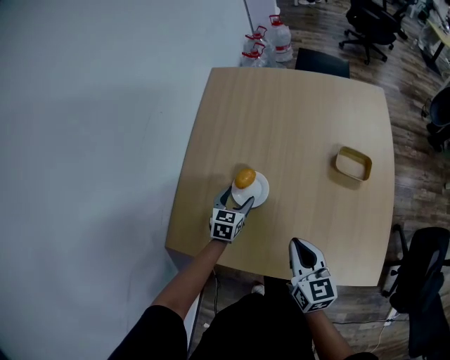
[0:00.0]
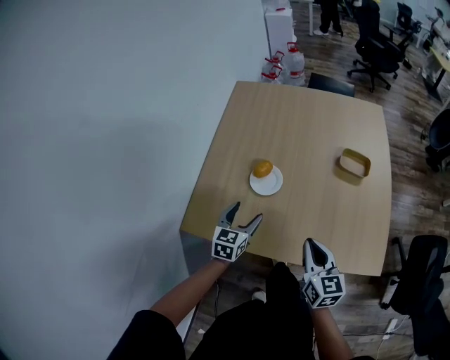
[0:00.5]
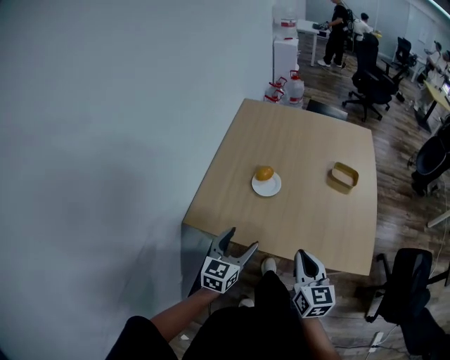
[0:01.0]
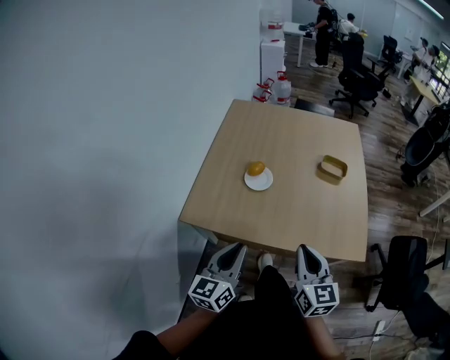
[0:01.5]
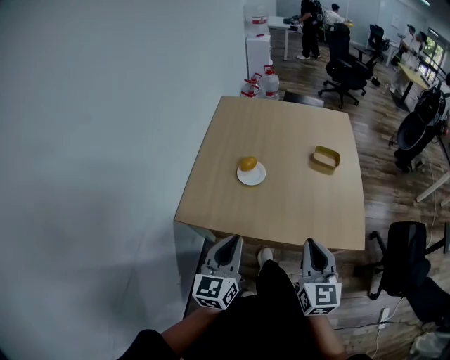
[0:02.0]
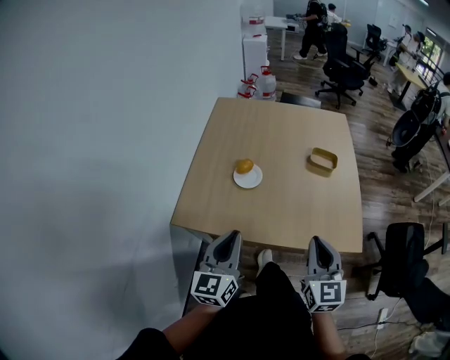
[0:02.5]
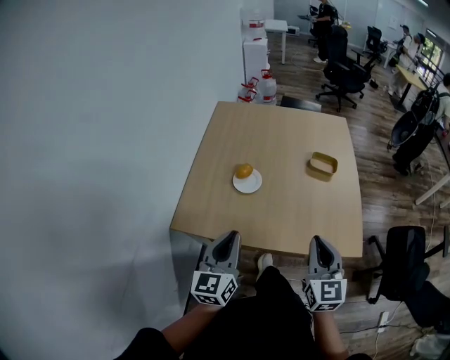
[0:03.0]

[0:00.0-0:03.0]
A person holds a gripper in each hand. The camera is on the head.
0:00.0 to 0:01.5: The right gripper travels backward and upward by some 25 cm; the left gripper goes some 50 cm backward and upward, tilts its fingers roughly 30 degrees upward, and closes up.
0:01.5 to 0:03.0: The left gripper travels forward by approximately 5 cm, while the right gripper is displaced to the right by roughly 5 cm.

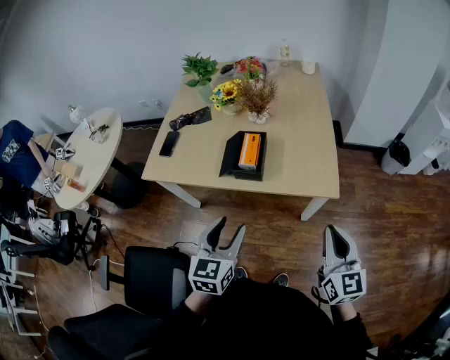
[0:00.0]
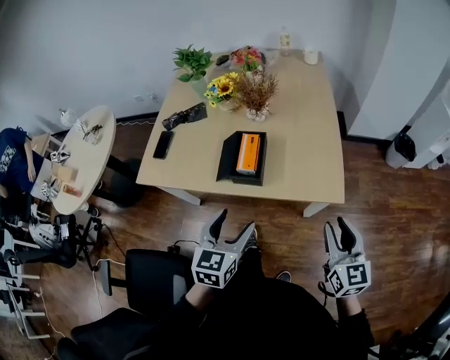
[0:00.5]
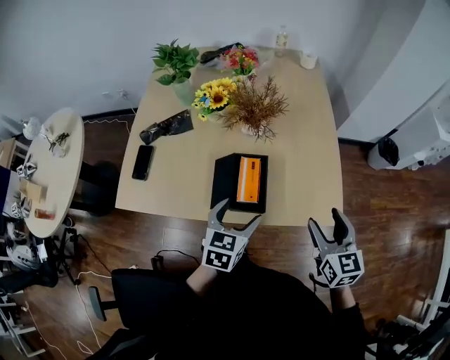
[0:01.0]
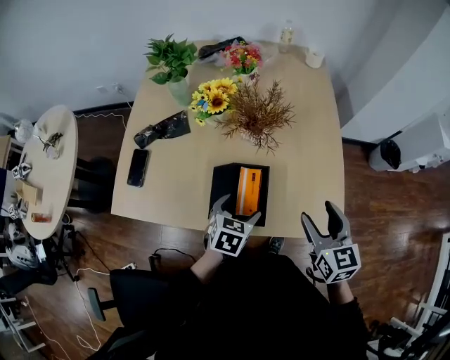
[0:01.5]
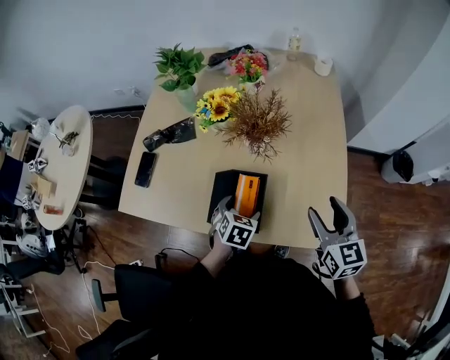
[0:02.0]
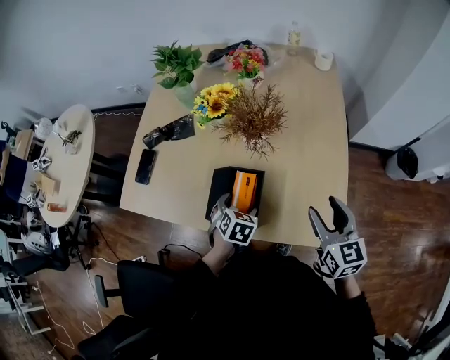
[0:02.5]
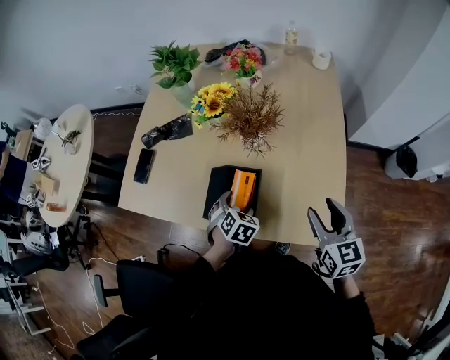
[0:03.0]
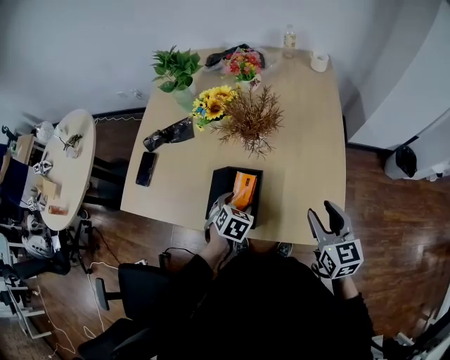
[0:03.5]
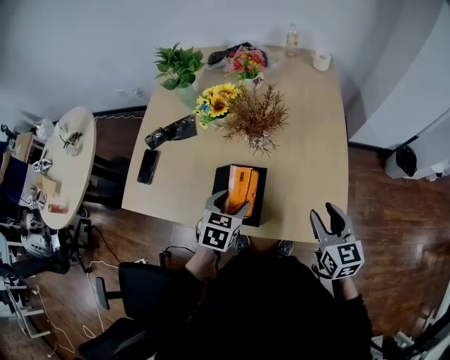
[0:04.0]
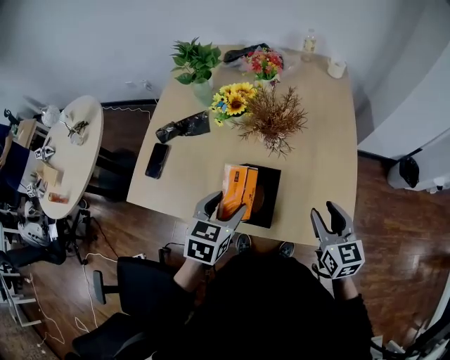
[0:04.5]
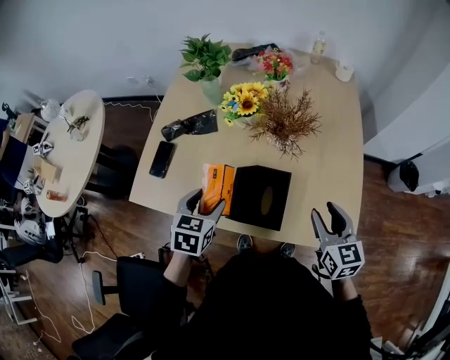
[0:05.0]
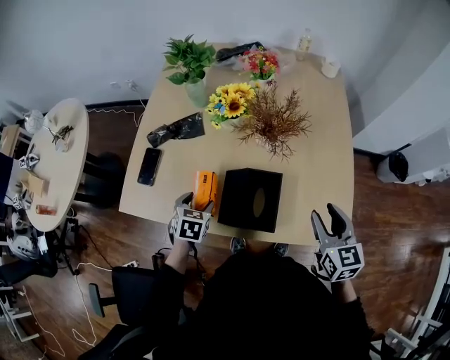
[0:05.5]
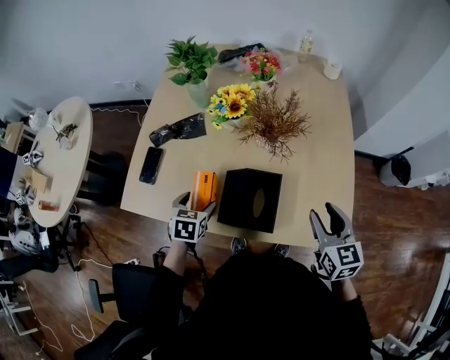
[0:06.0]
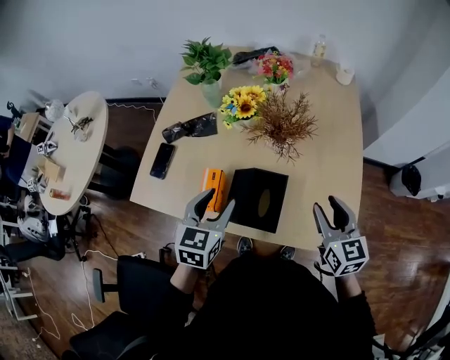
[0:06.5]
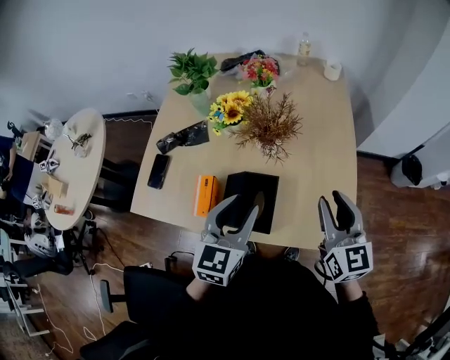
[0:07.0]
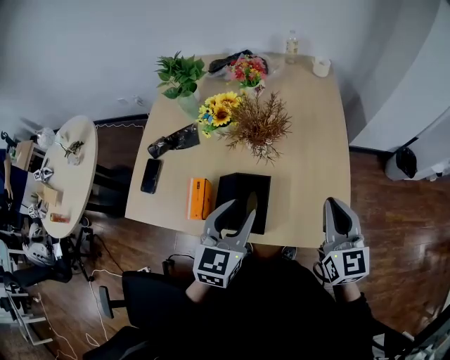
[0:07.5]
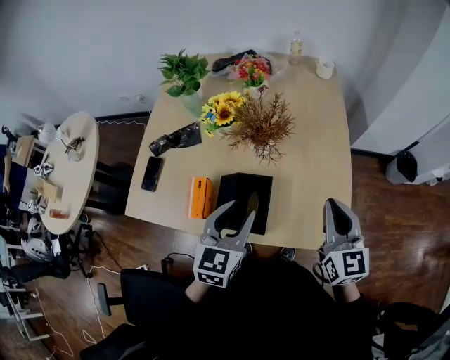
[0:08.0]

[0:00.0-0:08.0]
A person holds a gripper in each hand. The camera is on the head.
0:00.0 to 0:02.0: The left gripper heads forward and downward, covering some 40 cm, tips its fingers downward by about 30 degrees, and opens its fingers; the right gripper heads forward, covering about 35 cm, and opens up.
0:02.0 to 0:04.0: The right gripper shifts by some 5 cm. Meanwhile the left gripper is displaced upward by about 5 cm.
0:04.0 to 0:06.0: The left gripper travels to the left by some 20 cm; the right gripper is displaced to the left by roughly 5 cm.
0:06.0 to 0:08.0: The left gripper is displaced to the right and upward by about 25 cm, points its fingers approximately 30 degrees further upward, and closes its fingers; the right gripper travels upward by some 5 cm, and closes up.

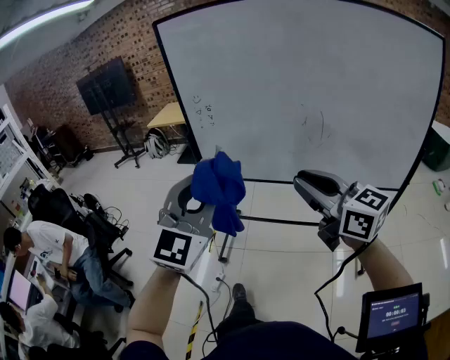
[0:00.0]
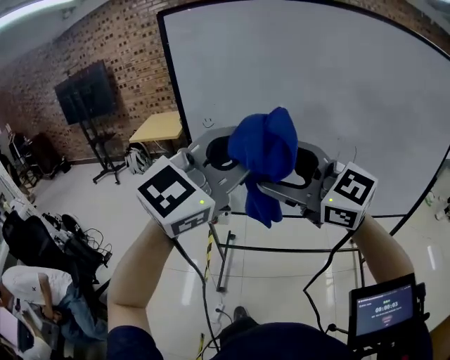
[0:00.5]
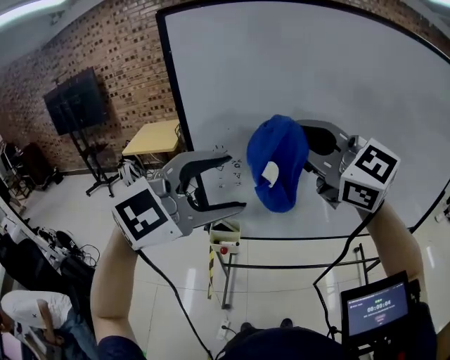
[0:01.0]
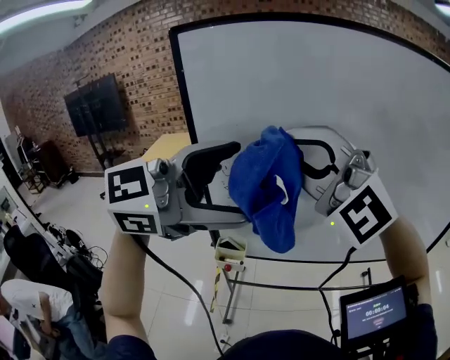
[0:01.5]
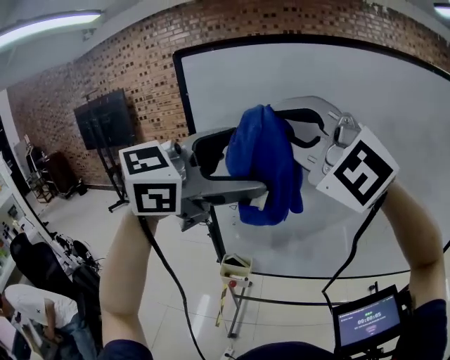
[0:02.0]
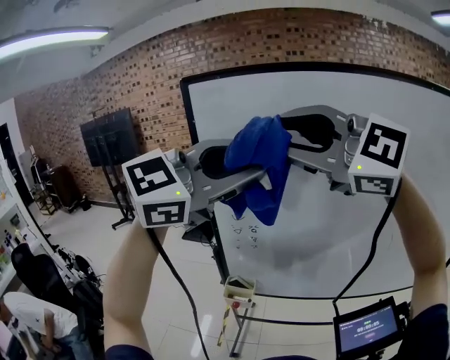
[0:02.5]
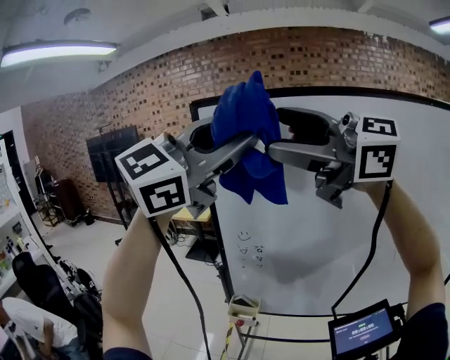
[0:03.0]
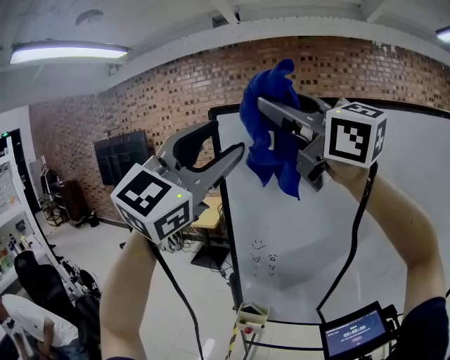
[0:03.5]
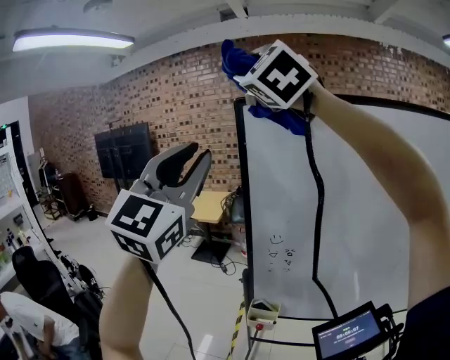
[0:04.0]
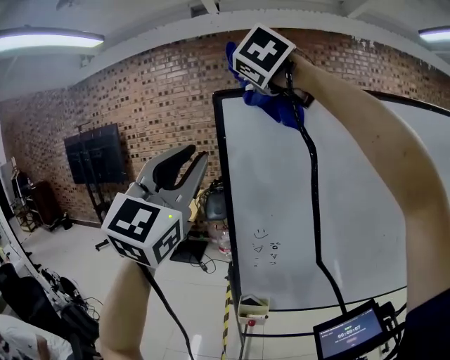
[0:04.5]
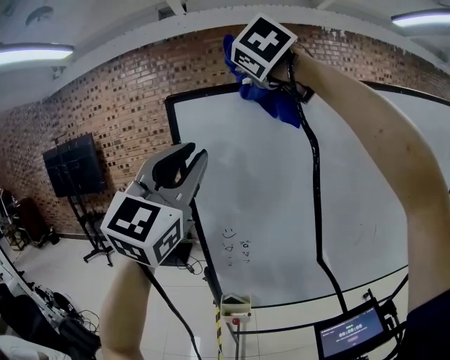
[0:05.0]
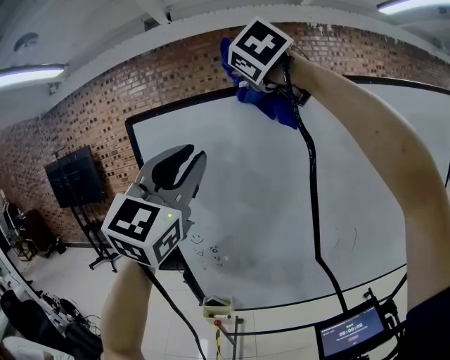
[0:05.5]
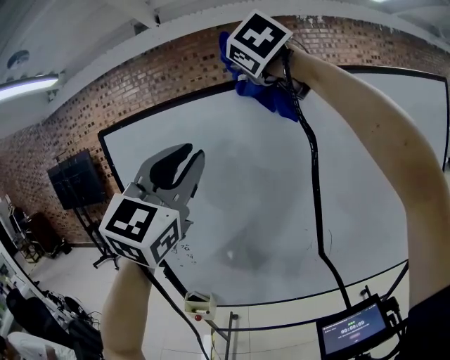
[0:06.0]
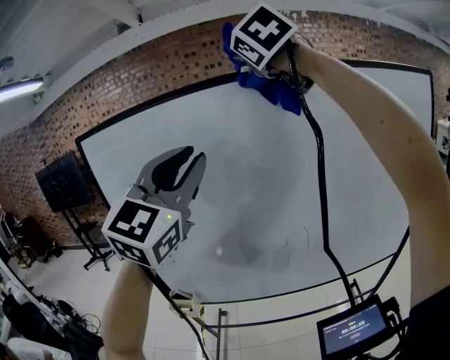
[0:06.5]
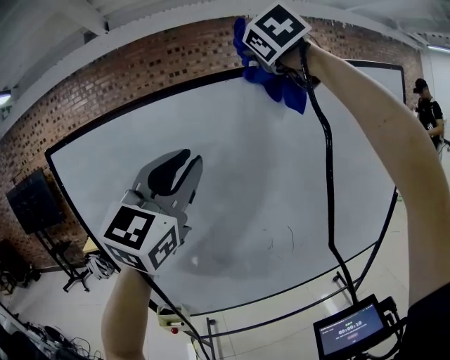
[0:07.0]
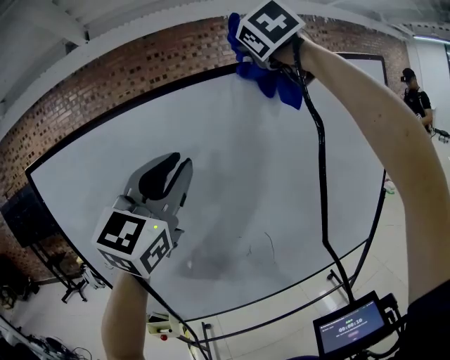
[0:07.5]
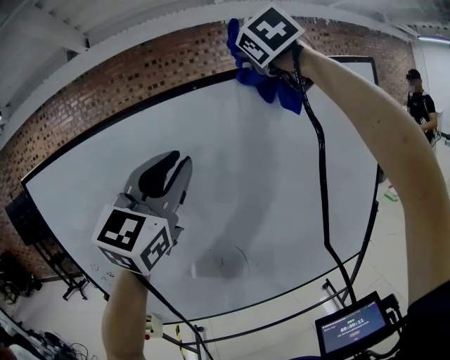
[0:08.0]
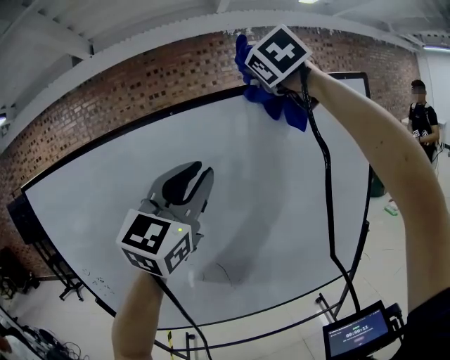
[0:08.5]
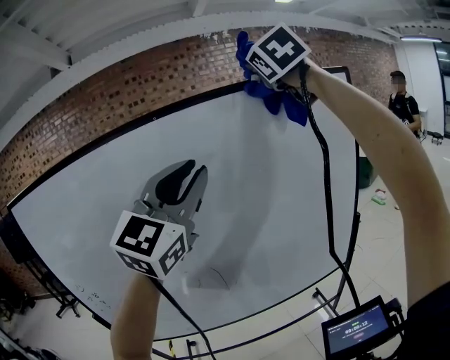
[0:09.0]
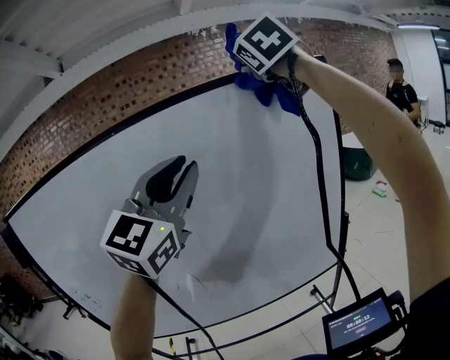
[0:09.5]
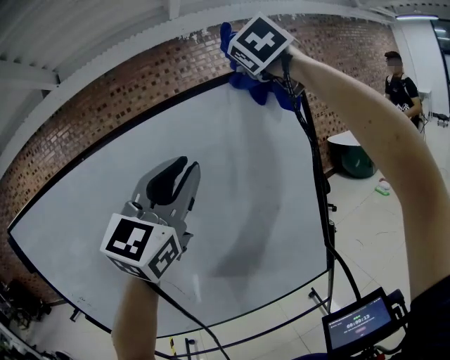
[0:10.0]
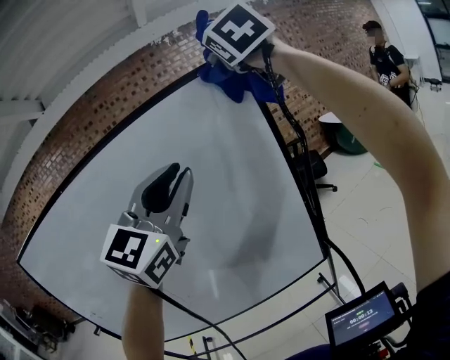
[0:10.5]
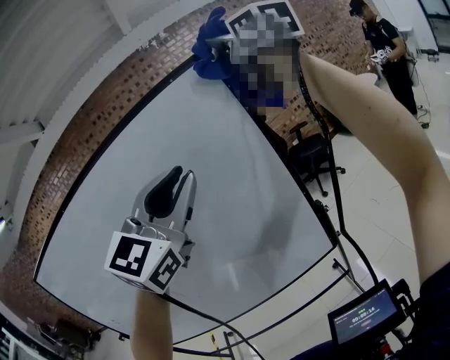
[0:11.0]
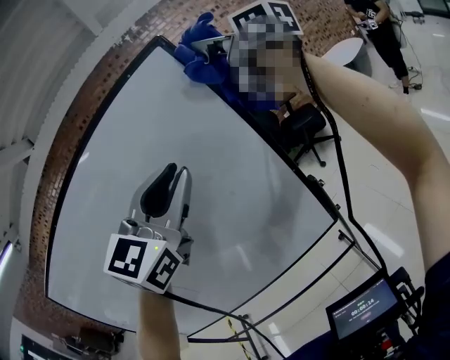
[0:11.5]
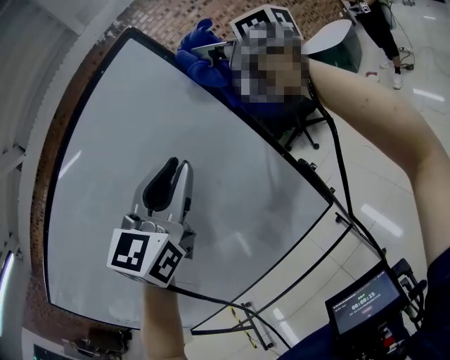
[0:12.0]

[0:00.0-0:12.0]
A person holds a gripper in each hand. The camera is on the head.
0:00.0 to 0:02.0: The left gripper goes up and down, approximately 15 cm each way, reversing 2 times, turns by roughly 50 degrees, and opens its fingers. Meanwhile the right gripper ends up roughly 40 cm from where it was, twists about 70 degrees counterclockwise, seen from behind, and opens, then closes again.
0:02.0 to 0:04.0: The right gripper goes about 20 cm upward, swivels some 30 degrees, and opens and closes again. Meanwhile the left gripper changes place by roughly 20 cm, rotates approximately 50 degrees, and closes up.
0:04.0 to 0:06.0: The grippers both shift to the right by approximately 35 cm. The right gripper changes its angle by approximately 30 degrees.
0:06.0 to 0:08.0: The left gripper is displaced to the right and forward by roughly 25 cm; the right gripper travels to the right by some 30 cm.
0:08.0 to 0:10.0: Both grippers move to the right and forward, approximately 25 cm.
0:10.0 to 0:12.0: The right gripper travels downward and to the right by some 20 cm, and rotates around the line of its fingers by about 60 degrees, clockwise from behind; the left gripper travels to the right, downward and forward by roughly 20 cm.

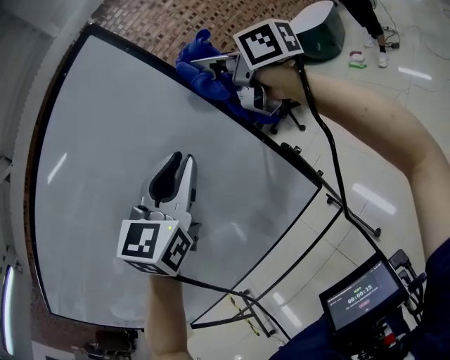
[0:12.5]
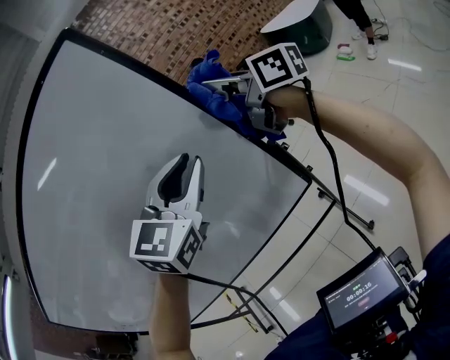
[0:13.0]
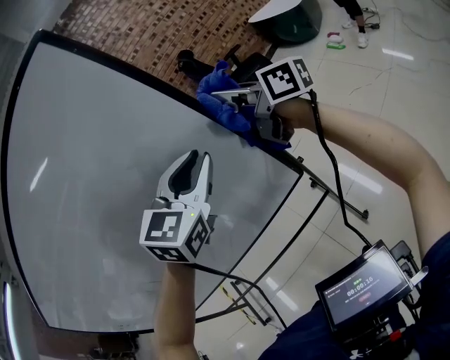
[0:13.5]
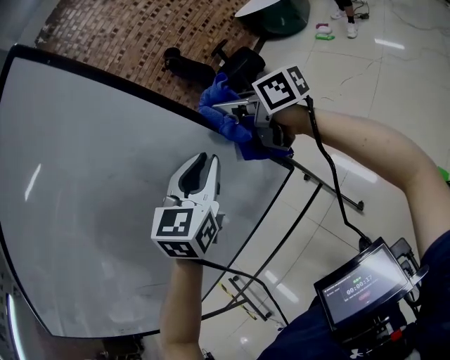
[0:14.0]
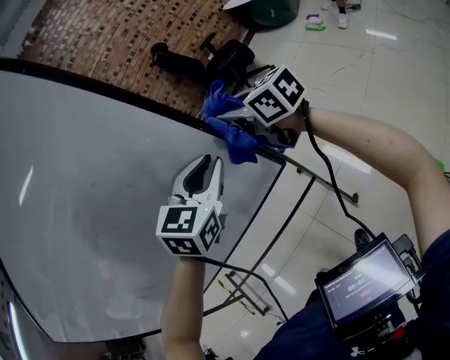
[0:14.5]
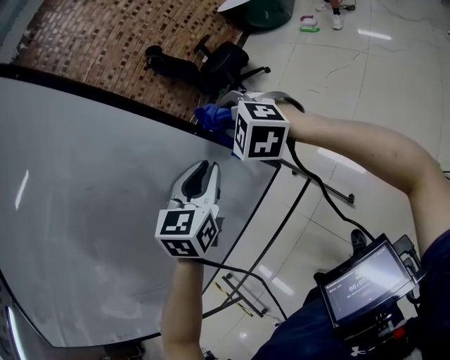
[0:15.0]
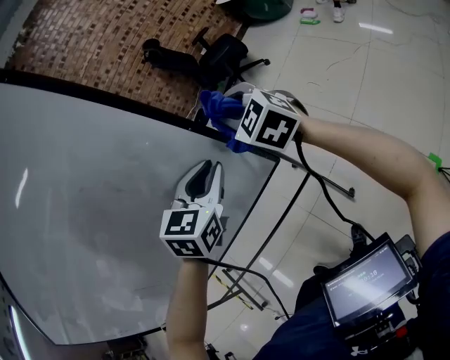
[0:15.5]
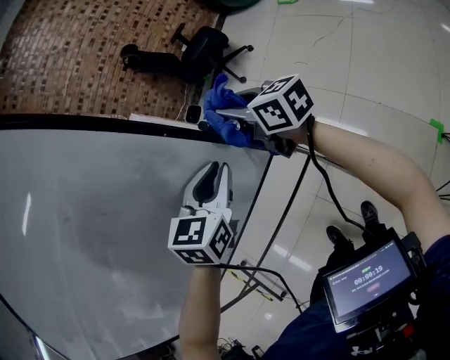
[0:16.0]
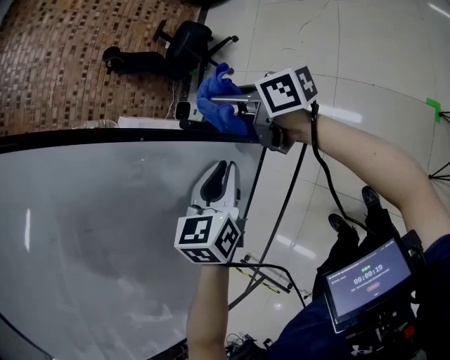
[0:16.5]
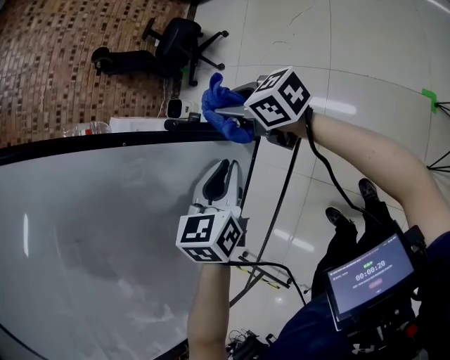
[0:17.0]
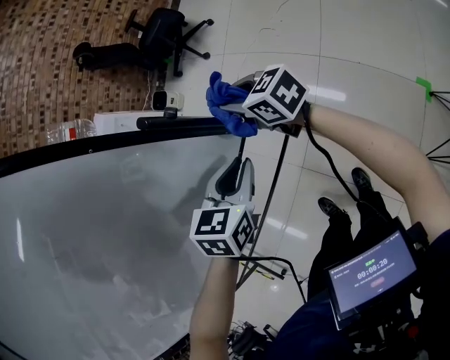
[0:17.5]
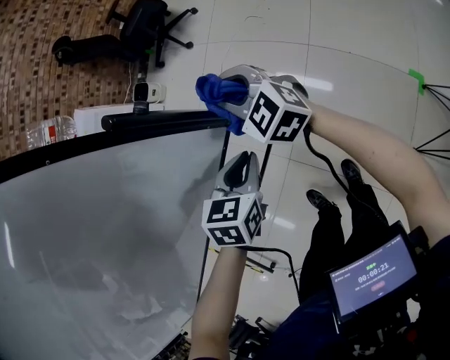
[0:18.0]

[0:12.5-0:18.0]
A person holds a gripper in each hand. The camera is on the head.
0:12.5 to 0:14.5: The grippers both shift downward by about 20 cm. The right gripper rotates approximately 30 degrees. The left gripper changes its angle by some 20 degrees.
0:14.5 to 0:16.0: Both grippers move downward, some 5 cm.
0:16.0 to 0:18.0: Both grippers travel together downward, approximately 20 cm. The right gripper rolls counterclockwise, seen from behind, by some 40 degrees; the left gripper swivels some 20 degrees.
